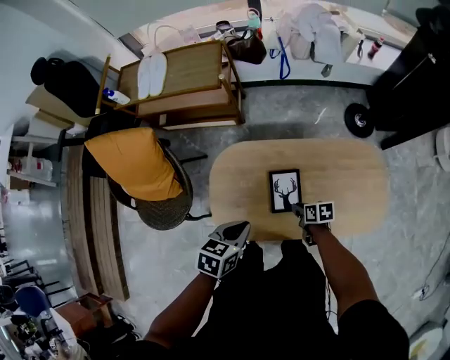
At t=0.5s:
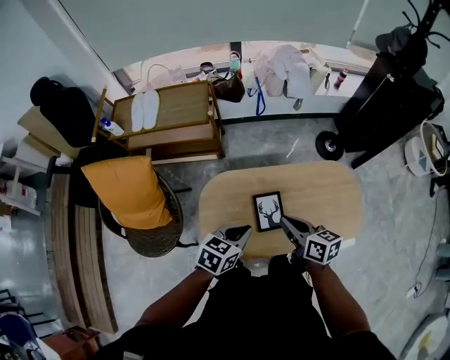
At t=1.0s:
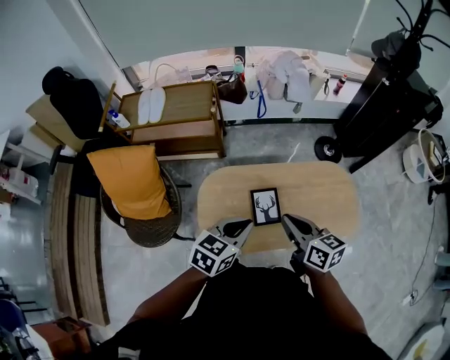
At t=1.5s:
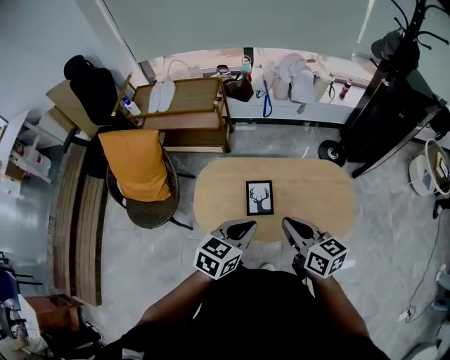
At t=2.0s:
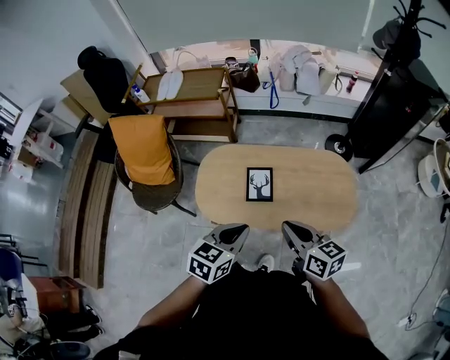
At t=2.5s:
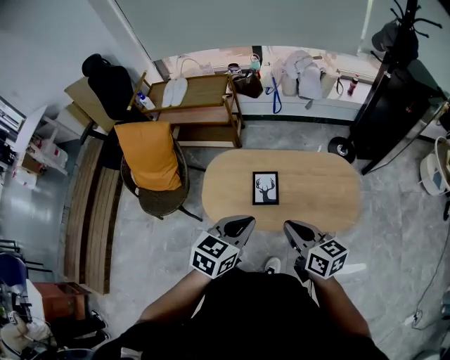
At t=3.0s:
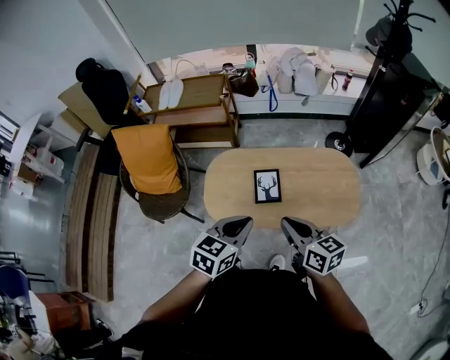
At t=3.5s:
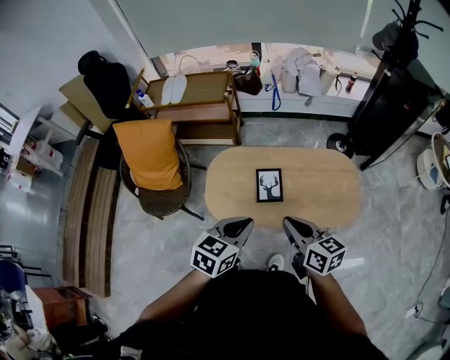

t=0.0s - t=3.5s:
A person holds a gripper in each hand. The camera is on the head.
t=0.0s - t=2.0s: The left gripper is displaced backward, to the right and upward by some 30 cm. The right gripper heads upward and backward, covering some 40 cm, and tilts its fingers approximately 30 degrees upward.
t=2.0s - t=3.5s: The two grippers go approximately 5 cm to the left.

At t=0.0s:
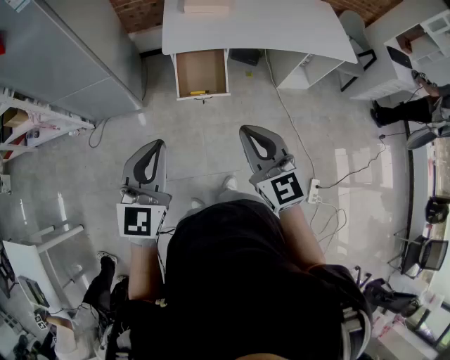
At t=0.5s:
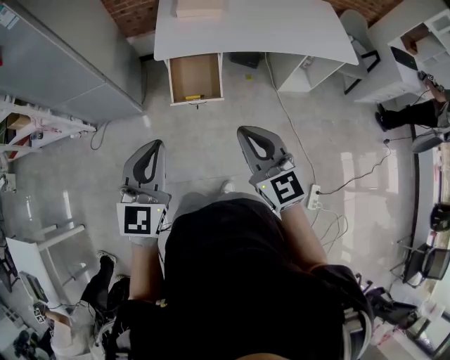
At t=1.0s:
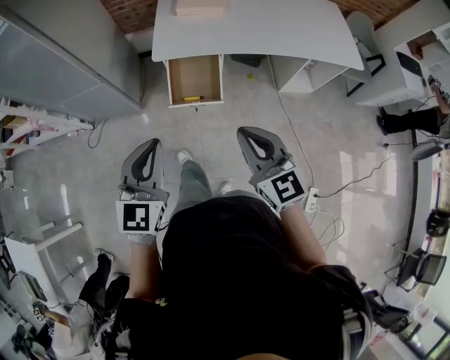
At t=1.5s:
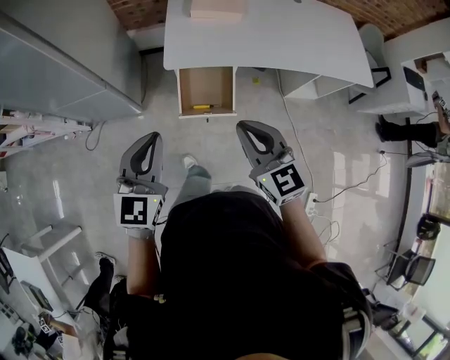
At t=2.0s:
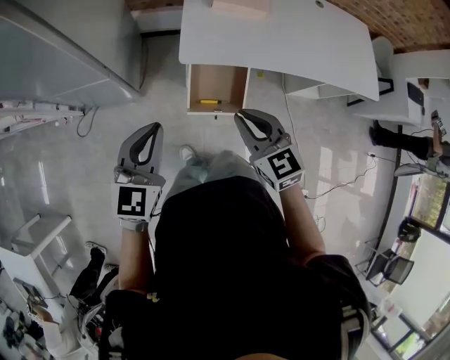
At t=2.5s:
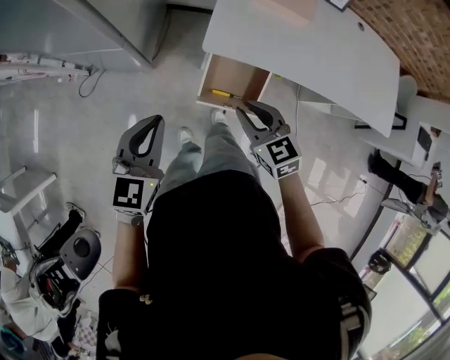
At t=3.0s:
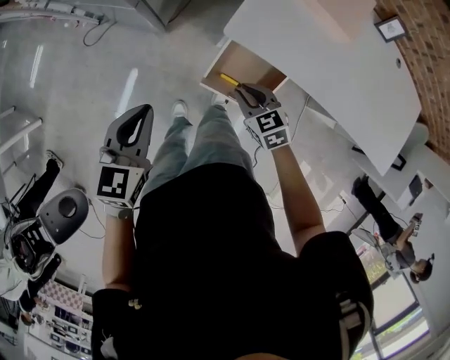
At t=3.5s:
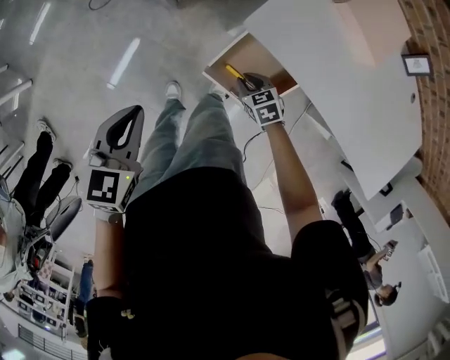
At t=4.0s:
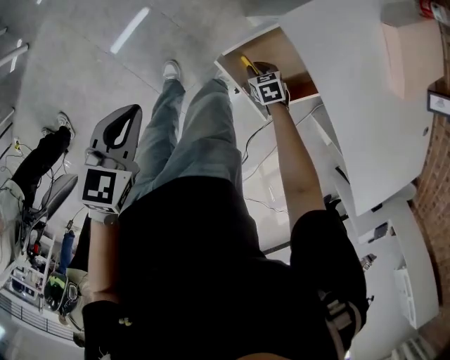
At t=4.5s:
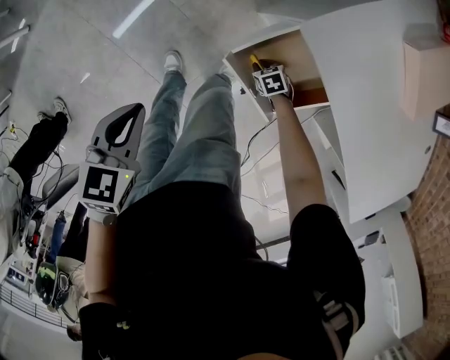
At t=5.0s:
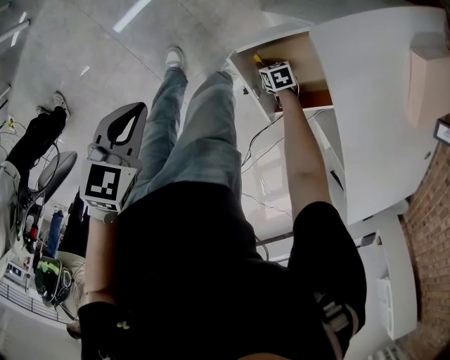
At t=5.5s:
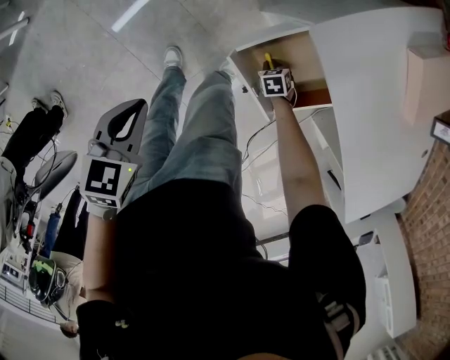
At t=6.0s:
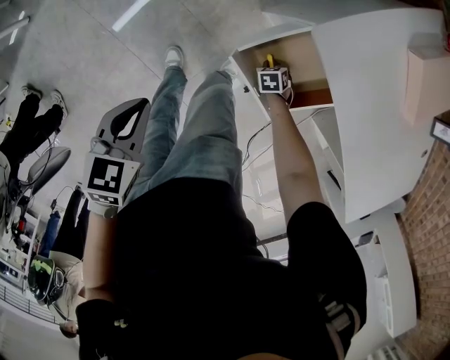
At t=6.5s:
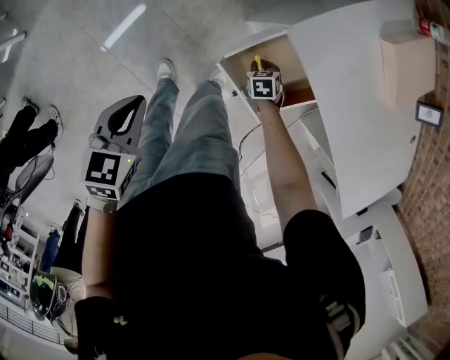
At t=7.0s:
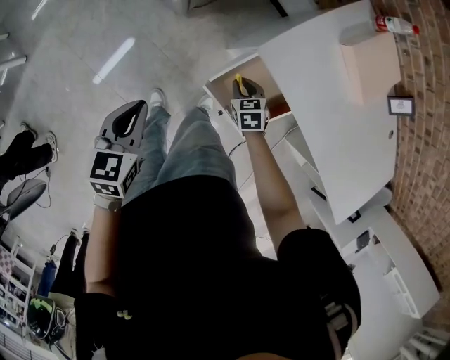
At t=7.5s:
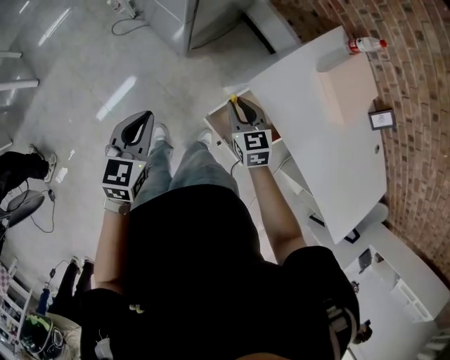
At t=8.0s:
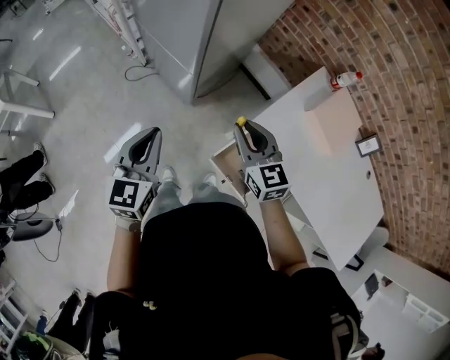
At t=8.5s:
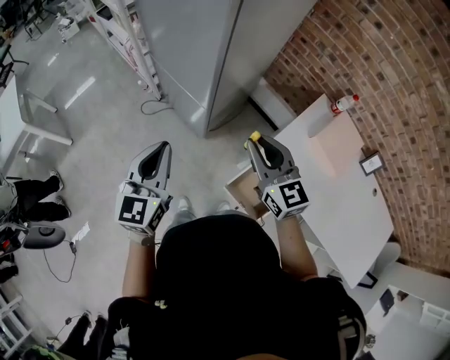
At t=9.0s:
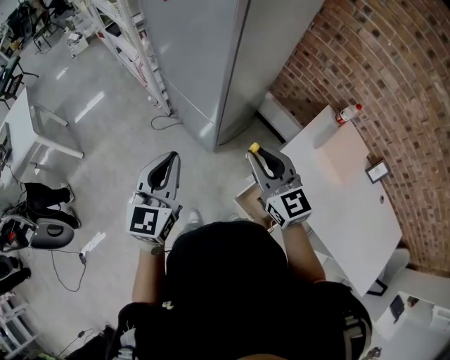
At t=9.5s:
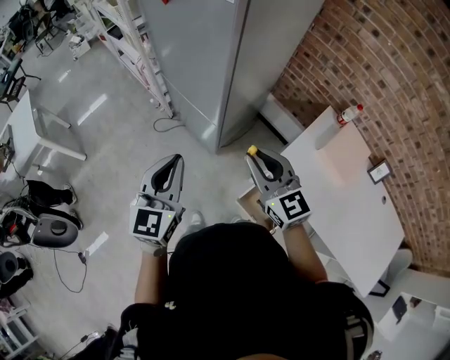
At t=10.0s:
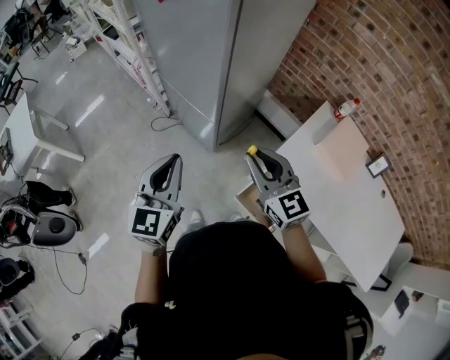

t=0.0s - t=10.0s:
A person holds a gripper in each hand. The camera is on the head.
t=0.0s - t=2.0s: The grippers both shift forward by about 30 cm. The right gripper turns by some 20 degrees.
t=2.0s - t=4.0s: The left gripper is displaced downward by some 25 cm, and tips its fingers downward by roughly 30 degrees. The right gripper goes roughly 50 cm downward, and tips its fingers downward by roughly 40 degrees.
t=4.0s - t=6.0s: The right gripper goes about 5 cm downward. The left gripper changes place by about 5 cm.
t=6.0s - t=8.0s: The left gripper is displaced upward by approximately 30 cm, and points its fingers roughly 40 degrees further upward; the right gripper is displaced upward by about 60 cm, and angles its fingers upward, by about 60 degrees.
t=8.0s - t=10.0s: The grippers both shift upward by about 15 cm.

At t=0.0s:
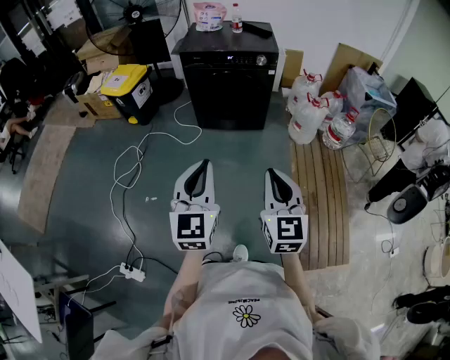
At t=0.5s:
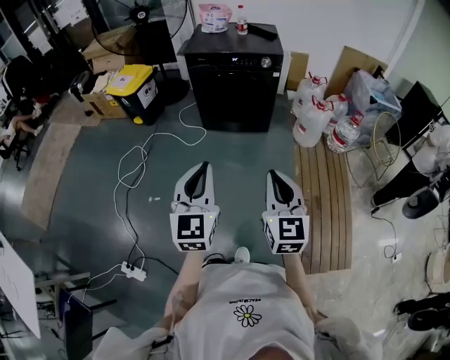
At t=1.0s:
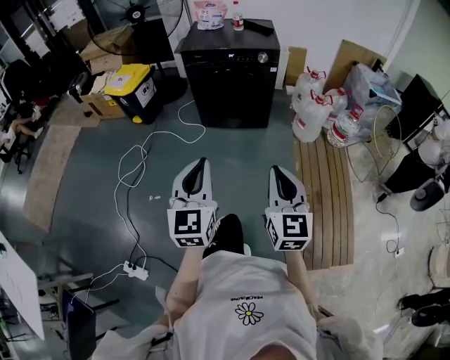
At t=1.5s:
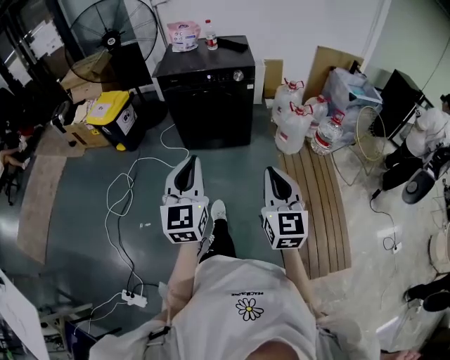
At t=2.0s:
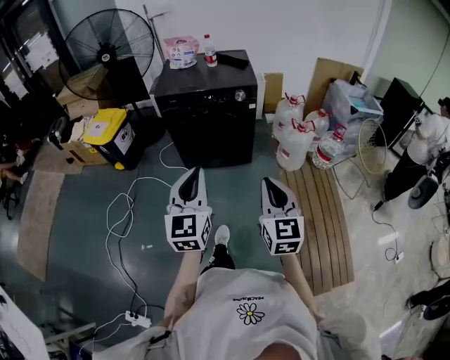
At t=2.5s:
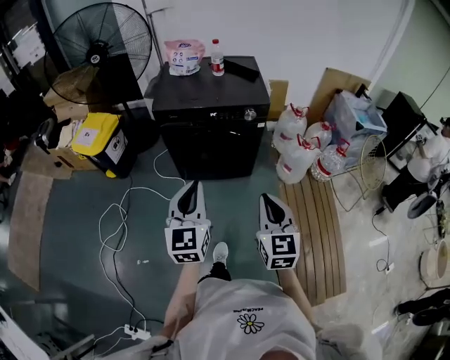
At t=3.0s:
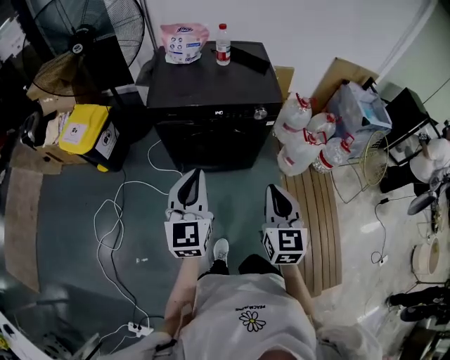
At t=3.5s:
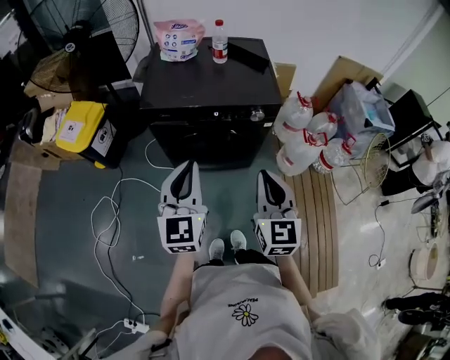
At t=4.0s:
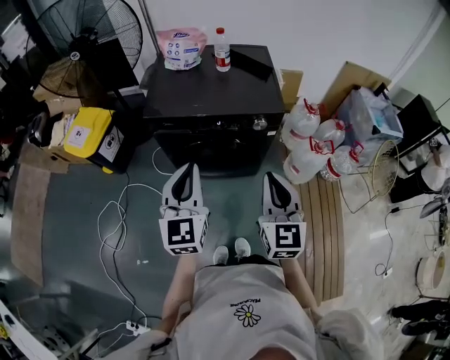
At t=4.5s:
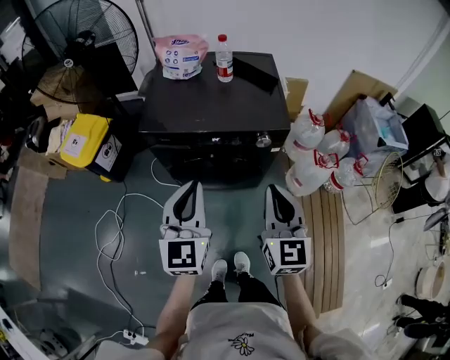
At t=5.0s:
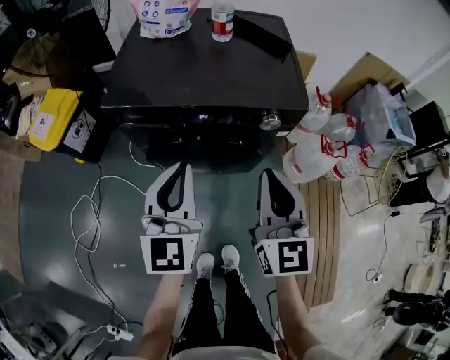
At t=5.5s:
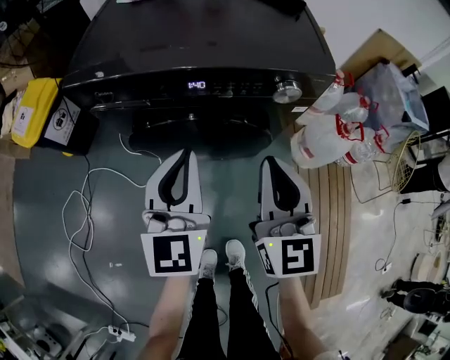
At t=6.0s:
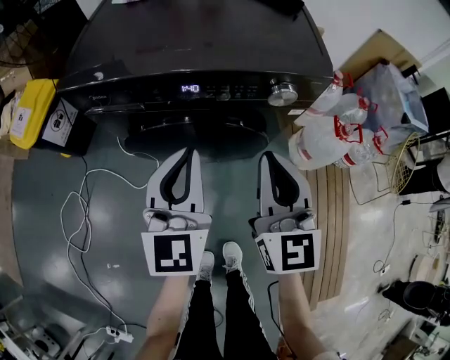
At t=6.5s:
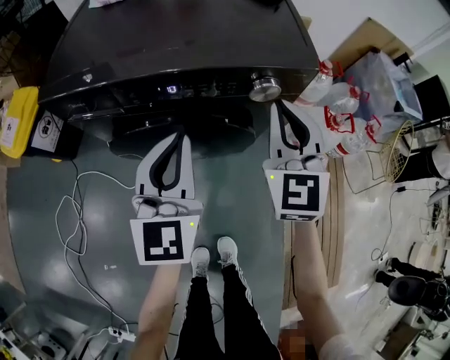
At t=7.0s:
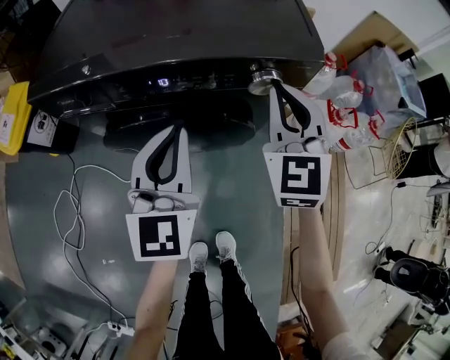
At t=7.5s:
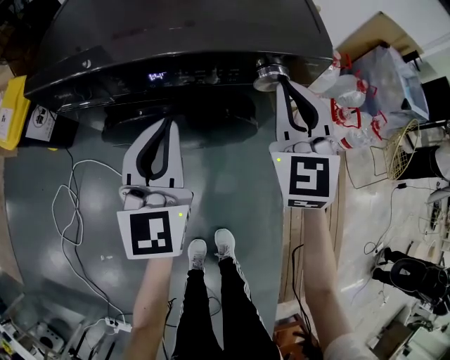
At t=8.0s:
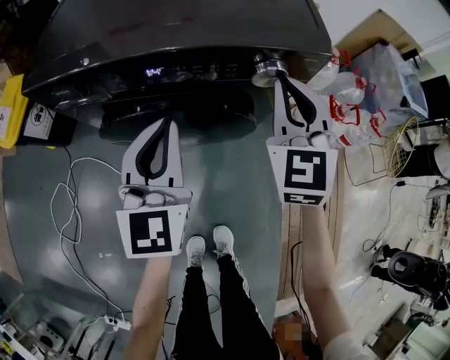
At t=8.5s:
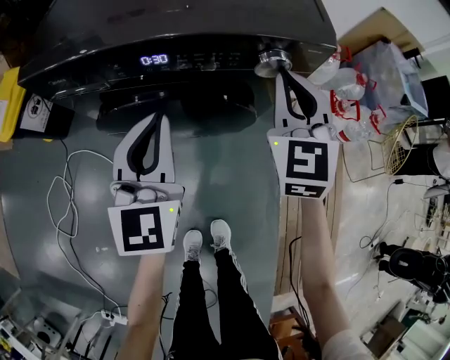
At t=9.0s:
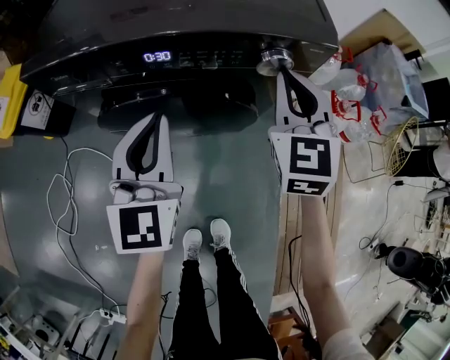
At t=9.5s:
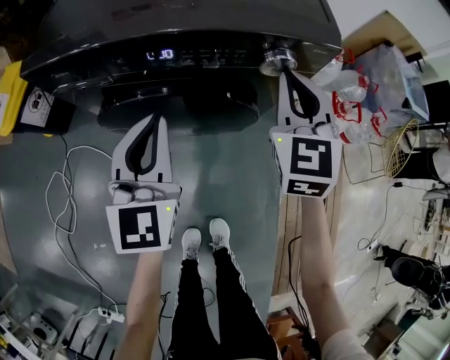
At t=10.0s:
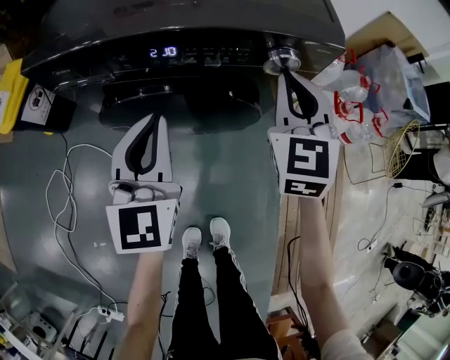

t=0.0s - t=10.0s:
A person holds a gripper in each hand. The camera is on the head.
t=0.0s - t=2.0s: The grippers both shift forward by roughly 15 cm.
t=2.0s - t=4.0s: The two grippers go some 35 cm forward.
t=4.0s - t=6.0s: The grippers both shift downward and forward by some 25 cm.
t=6.0s - t=8.0s: The right gripper shifts approximately 15 cm forward and to the right, and rotates roughly 20 degrees; the left gripper changes place by about 5 cm.
t=8.0s - t=10.0s: The grippers stay close to where they were, moving slightly.

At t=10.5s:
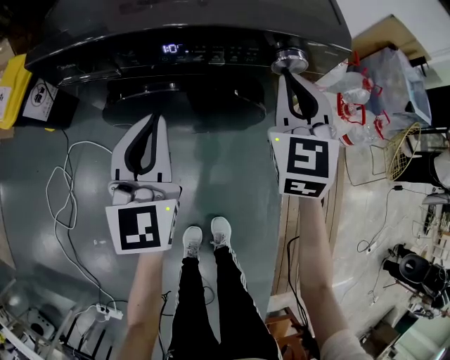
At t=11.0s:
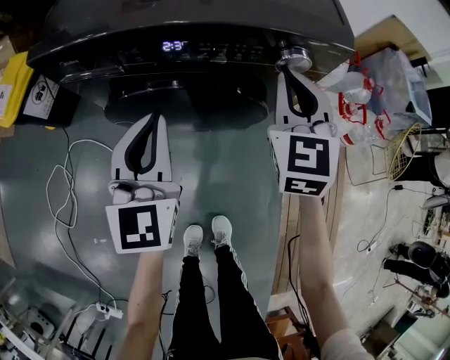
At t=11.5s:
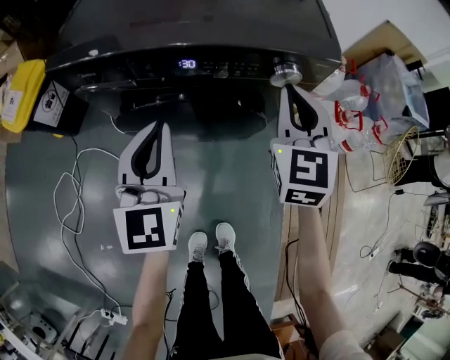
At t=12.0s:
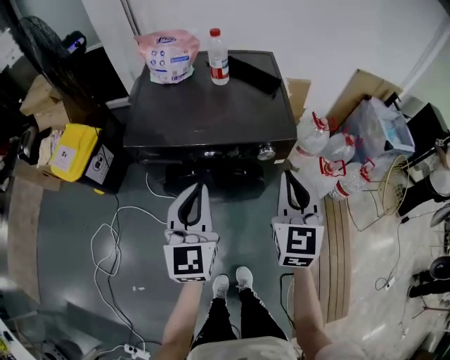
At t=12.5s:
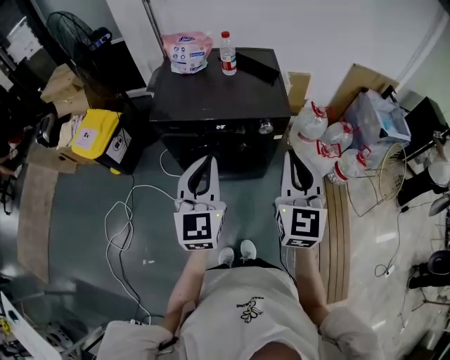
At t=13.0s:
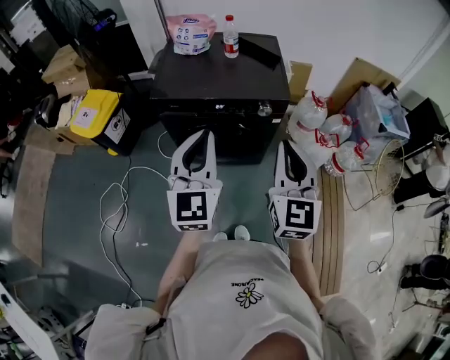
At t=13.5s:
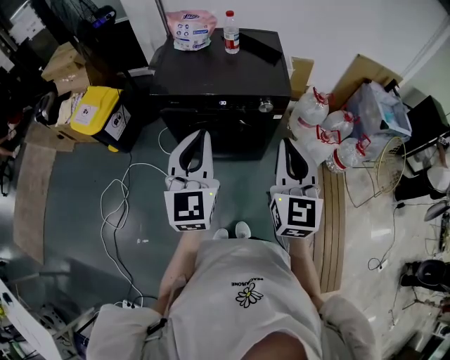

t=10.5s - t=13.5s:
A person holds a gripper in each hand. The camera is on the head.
t=10.5s - t=12.0s: The right gripper shifts some 25 cm upward and backward. The left gripper heads upward, covering about 20 cm.
t=12.0s - t=13.5s: The right gripper heads backward and upward, covering roughly 20 cm, while the left gripper is displaced upward and backward by approximately 15 cm.
